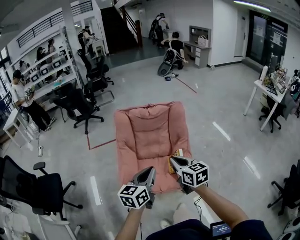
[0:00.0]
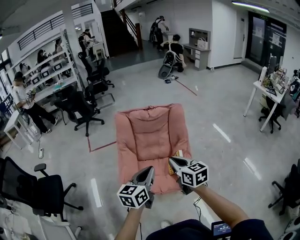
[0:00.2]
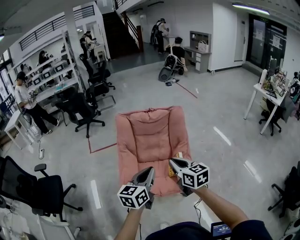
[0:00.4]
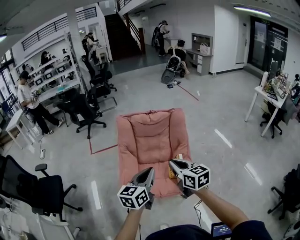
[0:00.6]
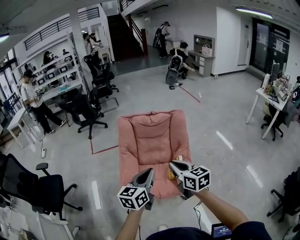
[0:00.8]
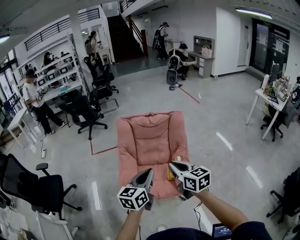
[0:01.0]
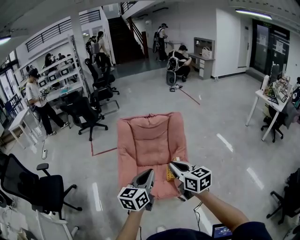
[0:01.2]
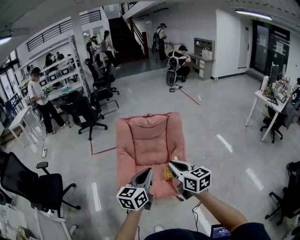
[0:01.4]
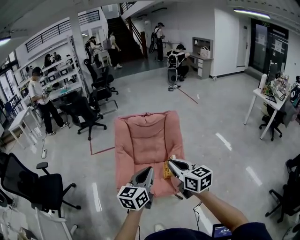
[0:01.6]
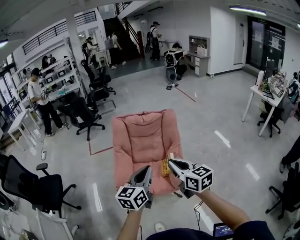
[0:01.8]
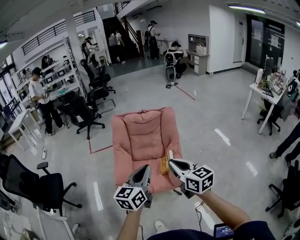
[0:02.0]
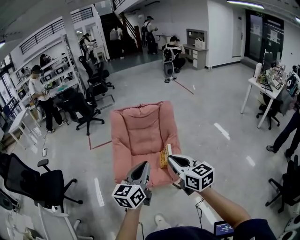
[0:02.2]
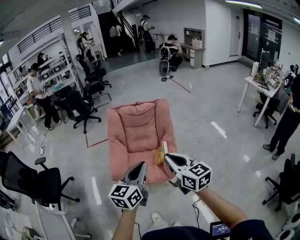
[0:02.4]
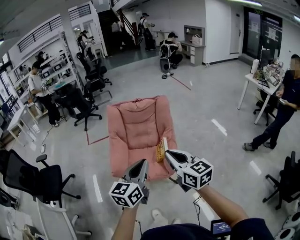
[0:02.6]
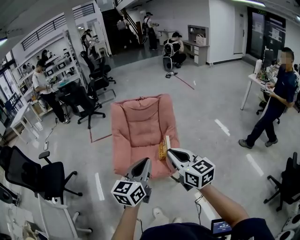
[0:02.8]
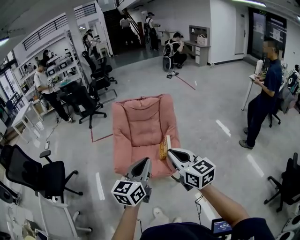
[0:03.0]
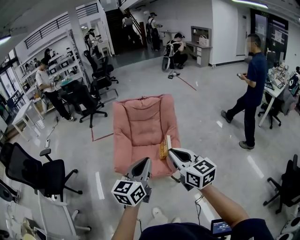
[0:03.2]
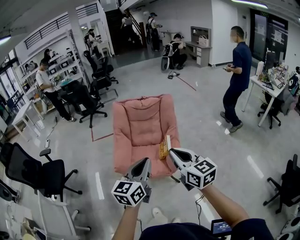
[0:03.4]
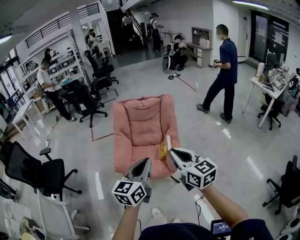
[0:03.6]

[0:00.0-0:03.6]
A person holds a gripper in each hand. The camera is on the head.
0:00.0 to 0:01.8: The right gripper heads backward, upward and to the right, covering some 15 cm. The left gripper travels upward, to the right and backward by approximately 10 cm.
0:01.8 to 0:03.6: The two grippers go about 10 cm backward.

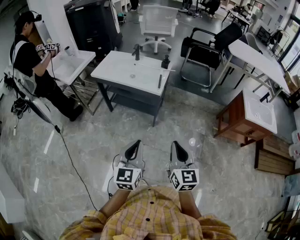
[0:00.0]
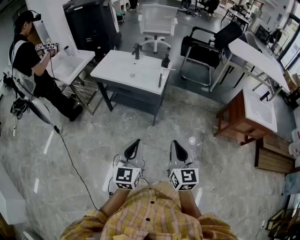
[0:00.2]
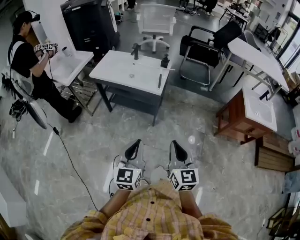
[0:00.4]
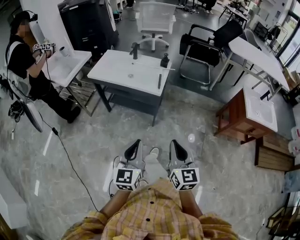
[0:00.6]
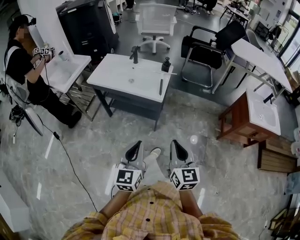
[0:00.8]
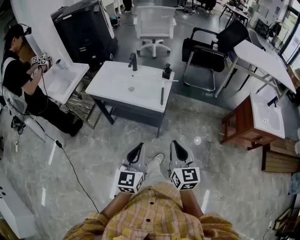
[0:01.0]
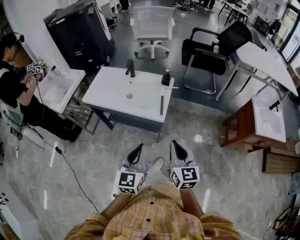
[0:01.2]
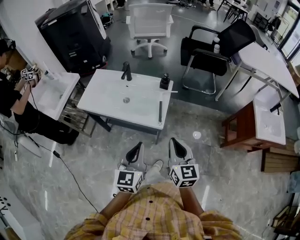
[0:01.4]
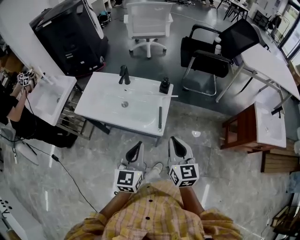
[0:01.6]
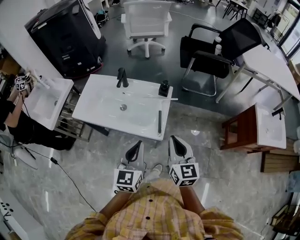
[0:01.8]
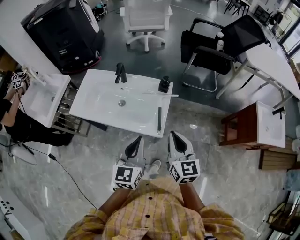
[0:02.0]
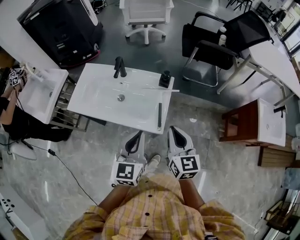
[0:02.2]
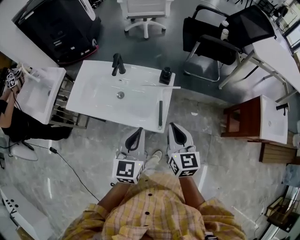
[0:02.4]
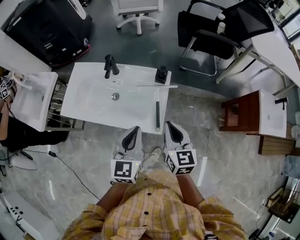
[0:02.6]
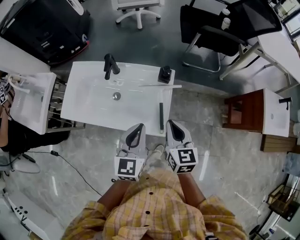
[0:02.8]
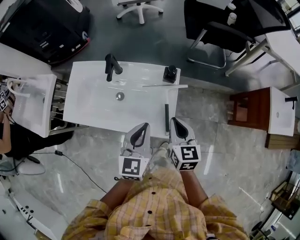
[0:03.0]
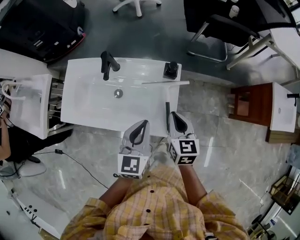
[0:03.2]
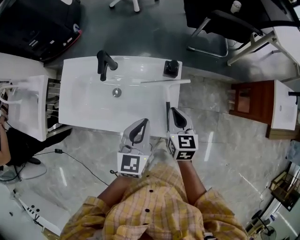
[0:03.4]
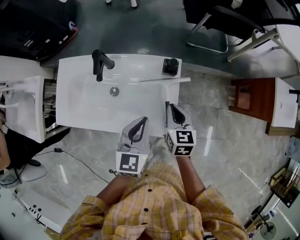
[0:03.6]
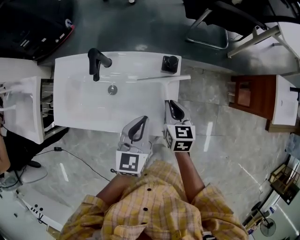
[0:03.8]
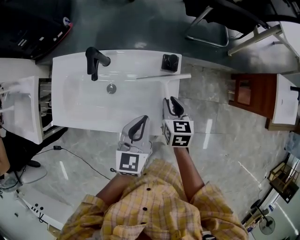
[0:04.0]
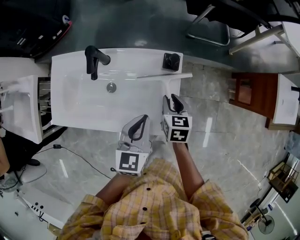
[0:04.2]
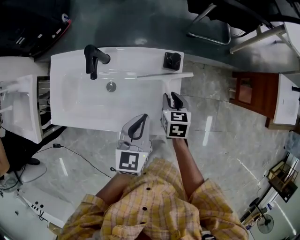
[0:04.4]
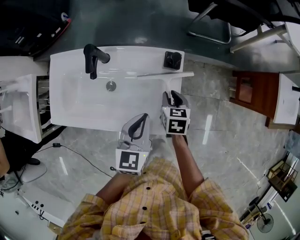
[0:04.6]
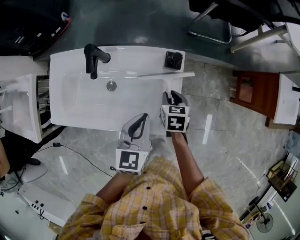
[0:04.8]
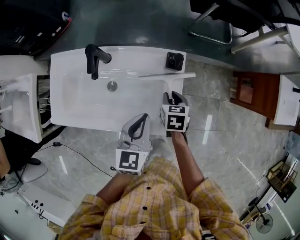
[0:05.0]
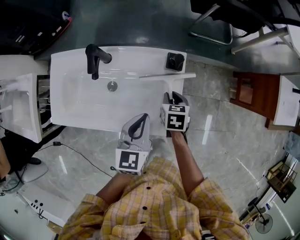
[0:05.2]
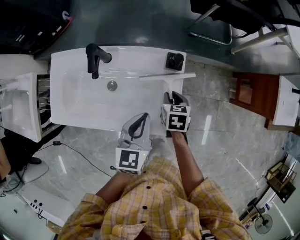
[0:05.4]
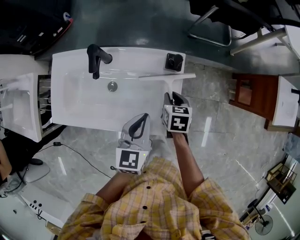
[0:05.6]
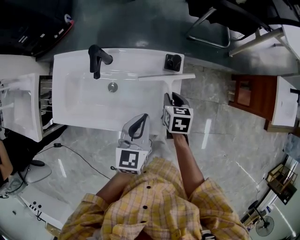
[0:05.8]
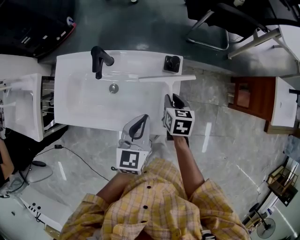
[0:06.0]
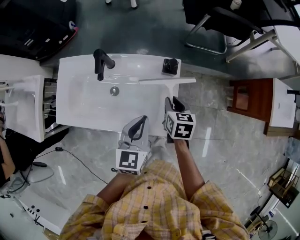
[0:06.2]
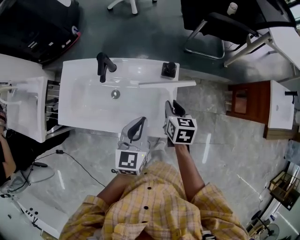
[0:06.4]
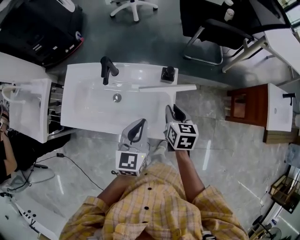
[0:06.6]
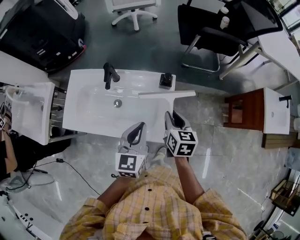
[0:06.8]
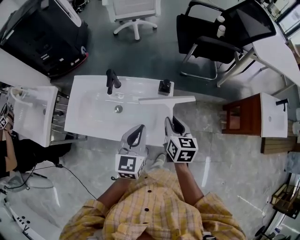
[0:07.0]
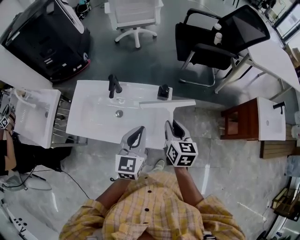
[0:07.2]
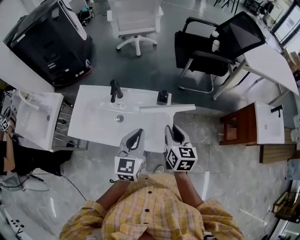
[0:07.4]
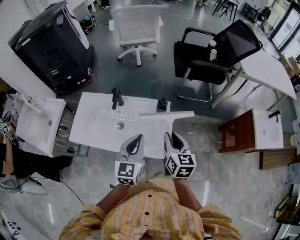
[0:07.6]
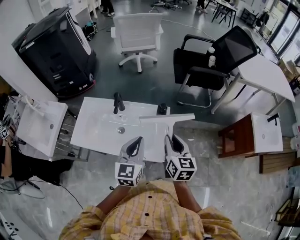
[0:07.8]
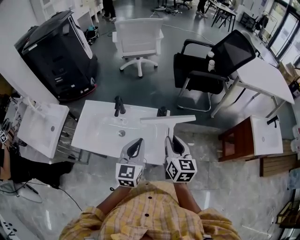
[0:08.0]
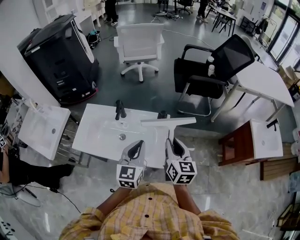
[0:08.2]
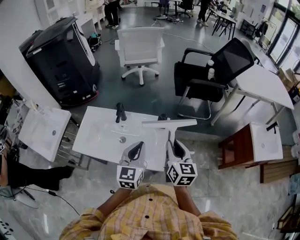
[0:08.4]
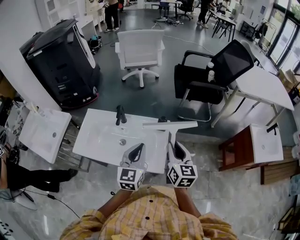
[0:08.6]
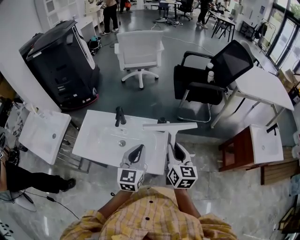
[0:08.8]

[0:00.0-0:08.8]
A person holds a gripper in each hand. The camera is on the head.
0:00.0 to 0:01.4: Both grippers travel together forward, roughly 30 cm.
0:01.4 to 0:03.0: The left gripper shifts about 25 cm forward. Meanwhile the right gripper heads forward and downward, covering roughly 25 cm.
0:03.0 to 0:04.4: The right gripper goes roughly 20 cm downward and forward, rotates some 20 degrees, and opens. The left gripper heads downward and forward, covering roughly 10 cm.
0:04.4 to 0:05.8: The grippers stay close to where they were, moving slightly.
0:05.8 to 0:07.4: The right gripper goes about 20 cm upward, and points its fingers some 30 degrees further upward, while the left gripper shifts some 15 cm upward.
0:07.4 to 0:08.8: The right gripper travels upward by approximately 5 cm.

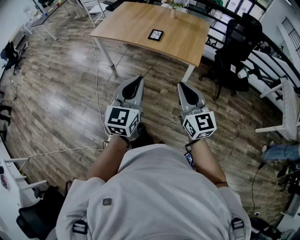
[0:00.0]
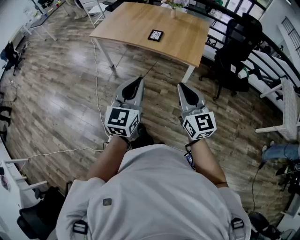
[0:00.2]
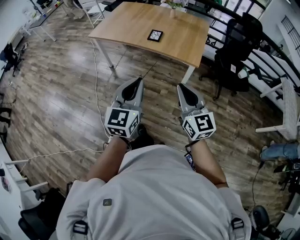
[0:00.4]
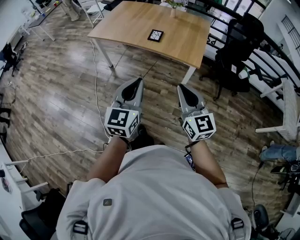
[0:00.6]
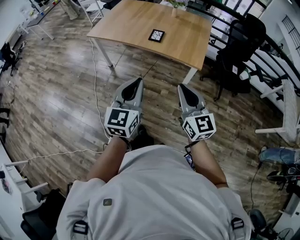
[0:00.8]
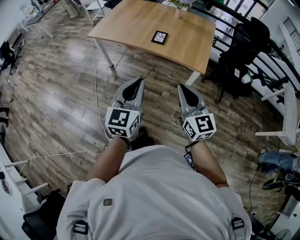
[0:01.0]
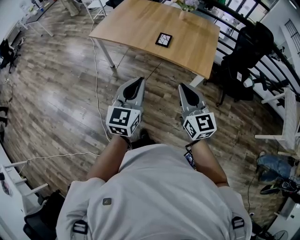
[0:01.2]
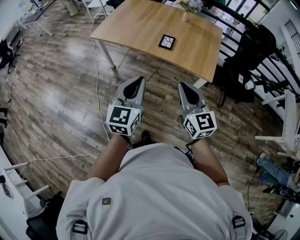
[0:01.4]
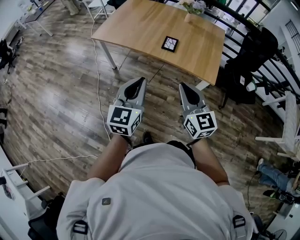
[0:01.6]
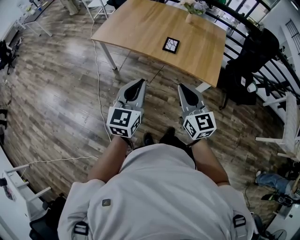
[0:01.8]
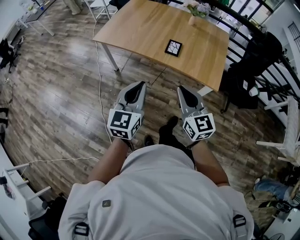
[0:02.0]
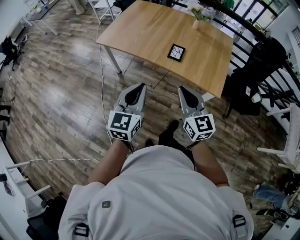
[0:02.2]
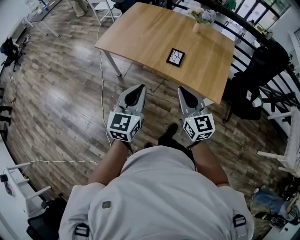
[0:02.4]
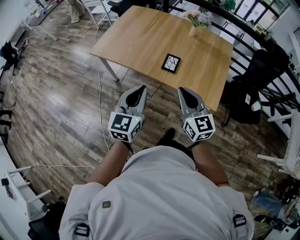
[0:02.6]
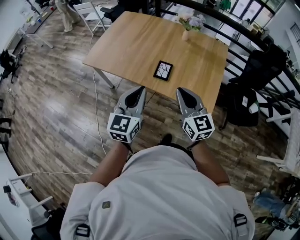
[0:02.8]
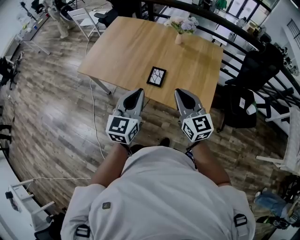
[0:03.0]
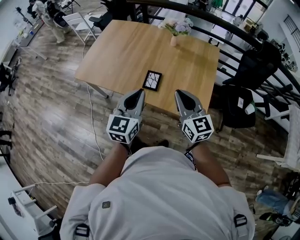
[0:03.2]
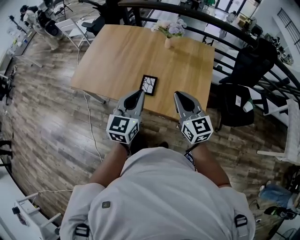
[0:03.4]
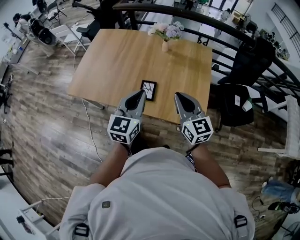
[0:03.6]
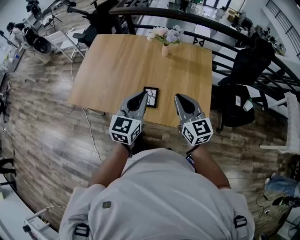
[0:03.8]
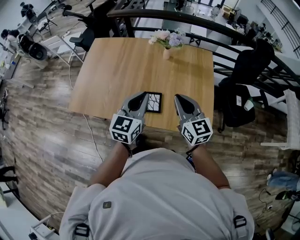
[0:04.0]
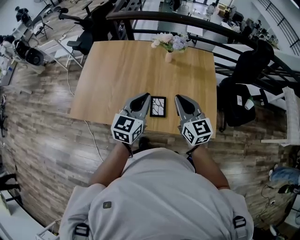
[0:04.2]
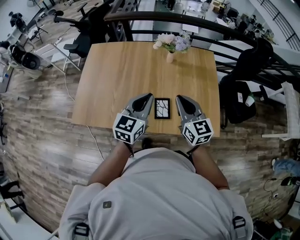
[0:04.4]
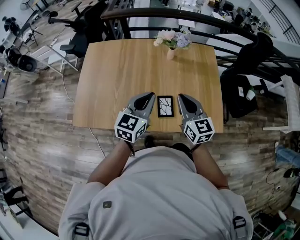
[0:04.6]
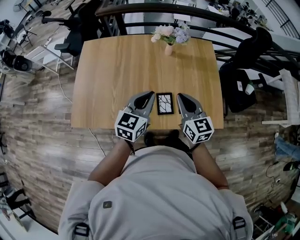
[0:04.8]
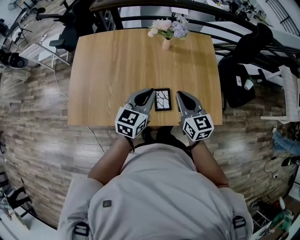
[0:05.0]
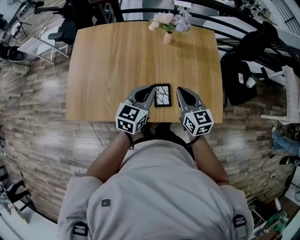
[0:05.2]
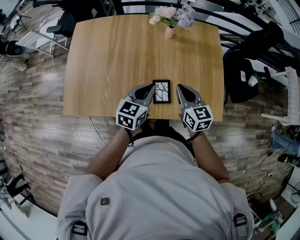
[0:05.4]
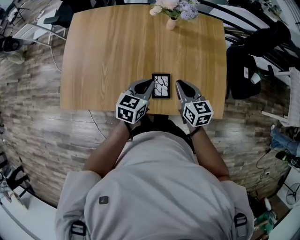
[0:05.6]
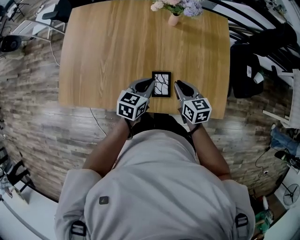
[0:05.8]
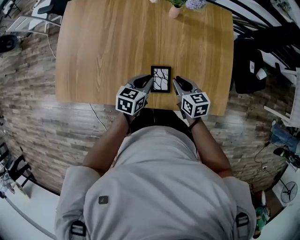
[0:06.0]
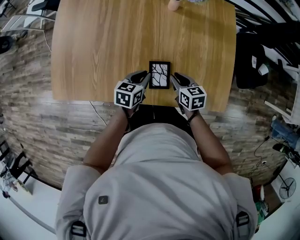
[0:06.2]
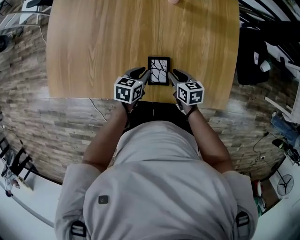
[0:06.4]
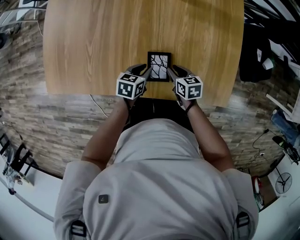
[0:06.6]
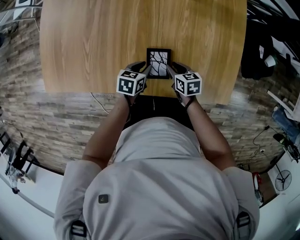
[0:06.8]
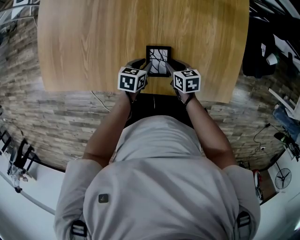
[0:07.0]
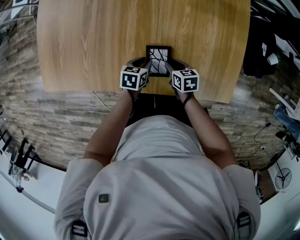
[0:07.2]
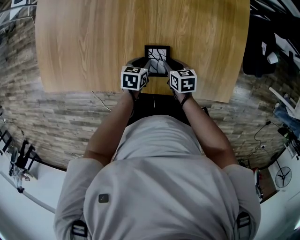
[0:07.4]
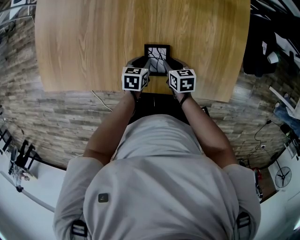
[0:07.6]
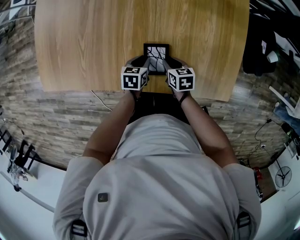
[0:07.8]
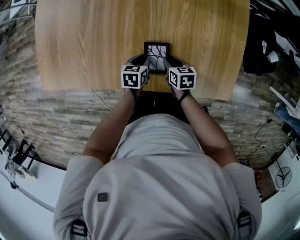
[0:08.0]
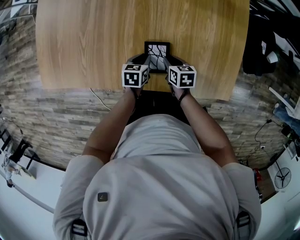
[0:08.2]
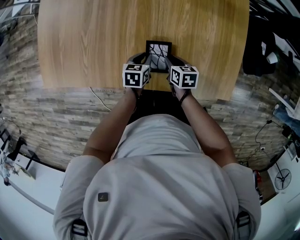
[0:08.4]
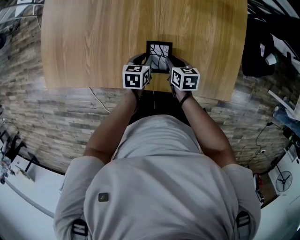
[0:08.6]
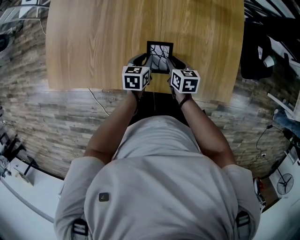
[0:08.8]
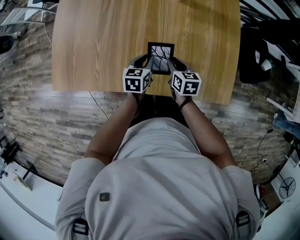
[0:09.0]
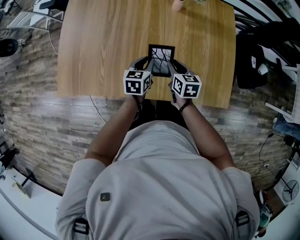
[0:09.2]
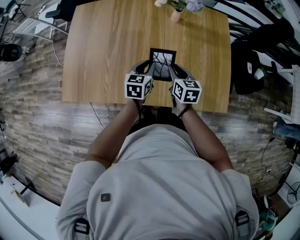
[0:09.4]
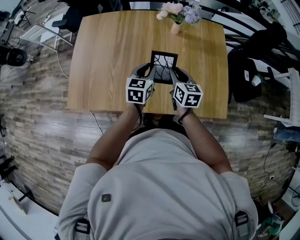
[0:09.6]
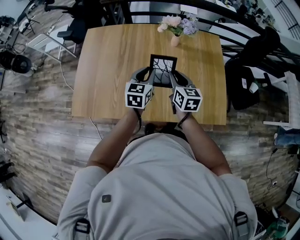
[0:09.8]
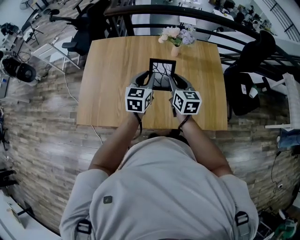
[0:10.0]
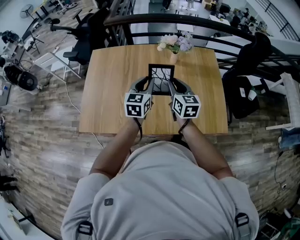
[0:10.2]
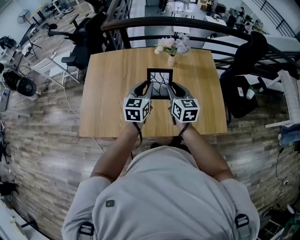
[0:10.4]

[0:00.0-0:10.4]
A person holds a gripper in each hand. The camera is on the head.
0:00.0 to 0:01.4: Both grippers travel together forward and to the left, about 20 cm.
0:01.4 to 0:03.0: The left gripper heads forward and to the right, covering about 30 cm. Meanwhile the right gripper moves forward, approximately 30 cm.
0:03.0 to 0:04.4: Both grippers travel together forward, about 20 cm. The left gripper swivels some 30 degrees.
0:04.4 to 0:06.0: Both grippers travel together downward, roughly 25 cm. The left gripper turns by some 30 degrees; the right gripper swivels roughly 40 degrees.
0:06.0 to 0:07.4: Both grippers move downward, roughly 15 cm. The left gripper rotates some 20 degrees. The right gripper changes its angle by about 20 degrees.
0:07.4 to 0:09.0: The two grippers go roughly 10 cm upward.
0:09.0 to 0:10.4: Both grippers travel together upward, about 25 cm. The left gripper changes its angle by some 30 degrees, while the right gripper swivels approximately 30 degrees.

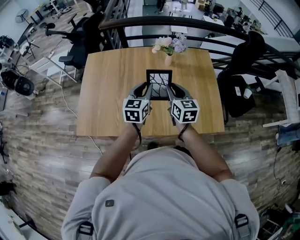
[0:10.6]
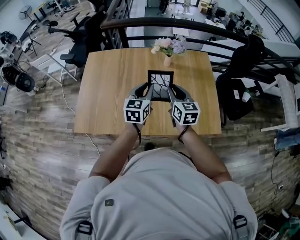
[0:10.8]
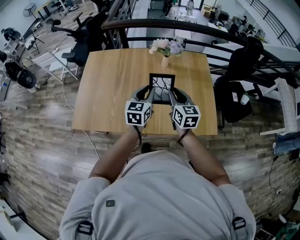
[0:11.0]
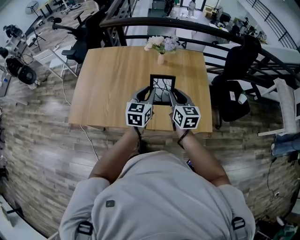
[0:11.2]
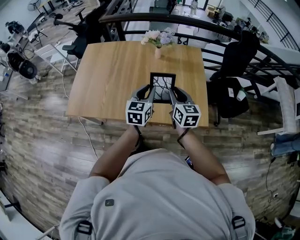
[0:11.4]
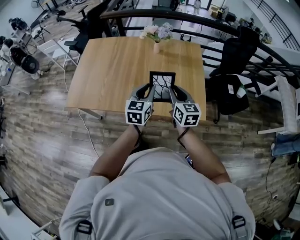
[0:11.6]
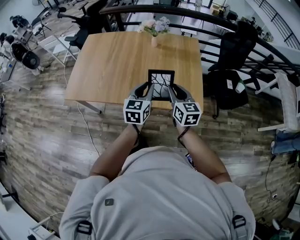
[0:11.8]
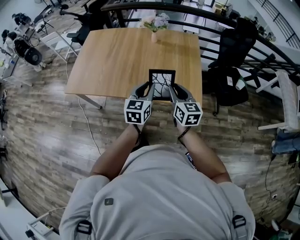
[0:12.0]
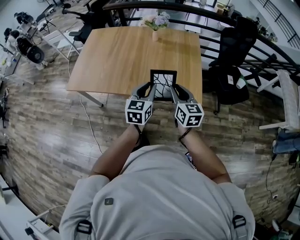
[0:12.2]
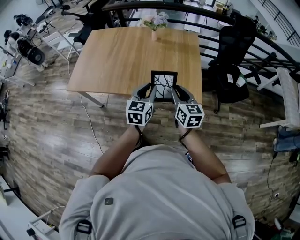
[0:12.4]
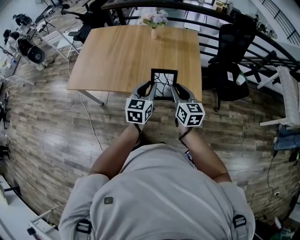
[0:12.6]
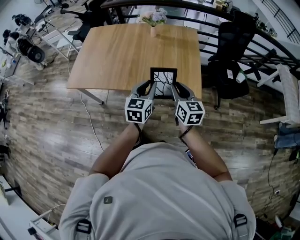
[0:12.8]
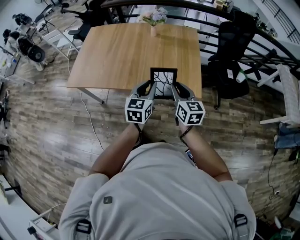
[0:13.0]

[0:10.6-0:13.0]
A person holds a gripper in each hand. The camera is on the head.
0:10.6 to 0:11.8: The two grippers go approximately 30 cm backward and to the right.
0:11.8 to 0:13.0: The two grippers go about 10 cm backward.
